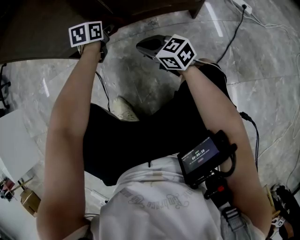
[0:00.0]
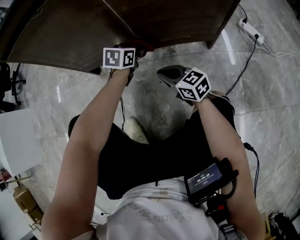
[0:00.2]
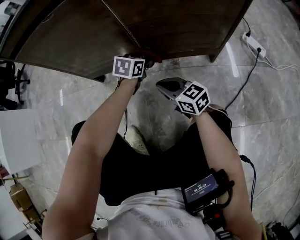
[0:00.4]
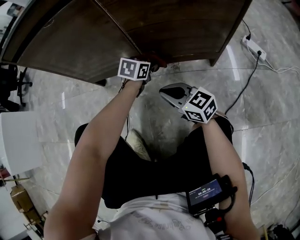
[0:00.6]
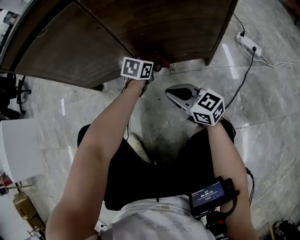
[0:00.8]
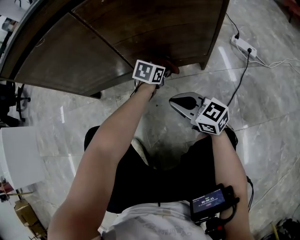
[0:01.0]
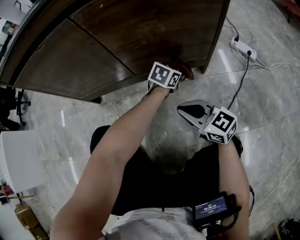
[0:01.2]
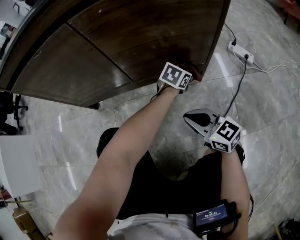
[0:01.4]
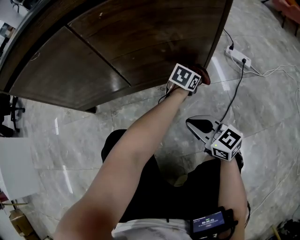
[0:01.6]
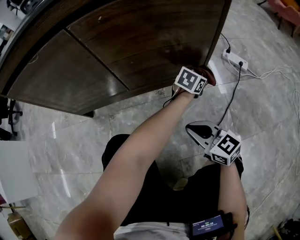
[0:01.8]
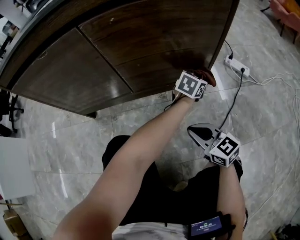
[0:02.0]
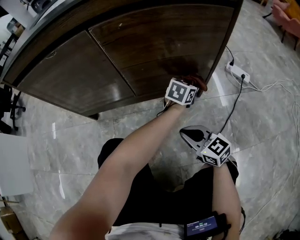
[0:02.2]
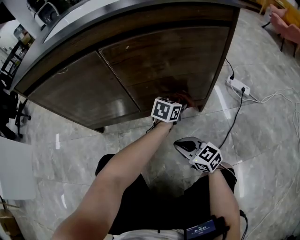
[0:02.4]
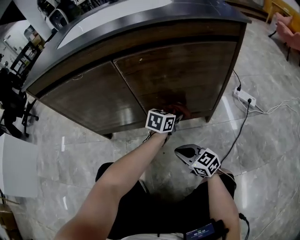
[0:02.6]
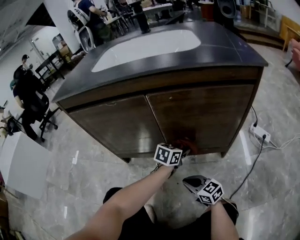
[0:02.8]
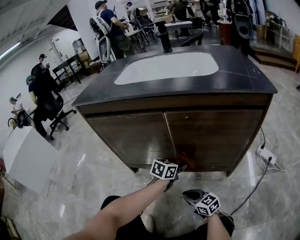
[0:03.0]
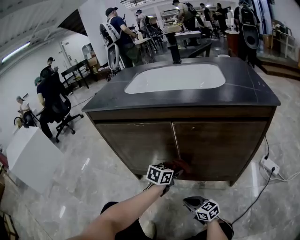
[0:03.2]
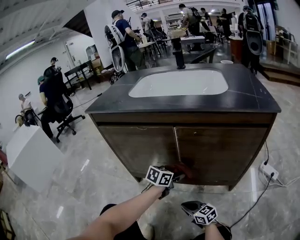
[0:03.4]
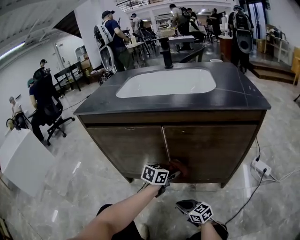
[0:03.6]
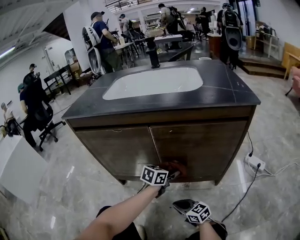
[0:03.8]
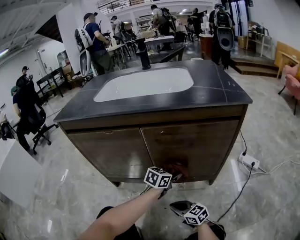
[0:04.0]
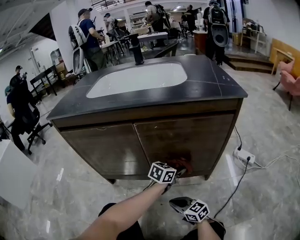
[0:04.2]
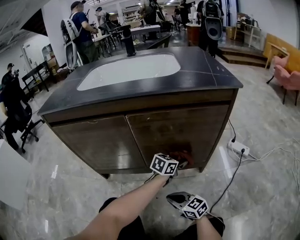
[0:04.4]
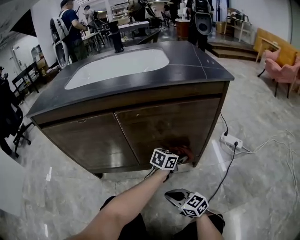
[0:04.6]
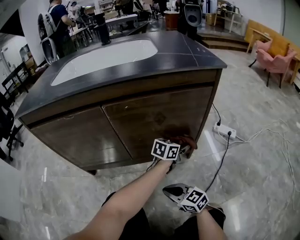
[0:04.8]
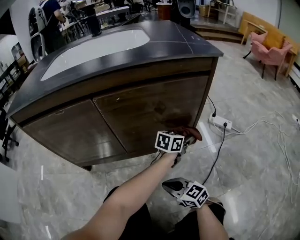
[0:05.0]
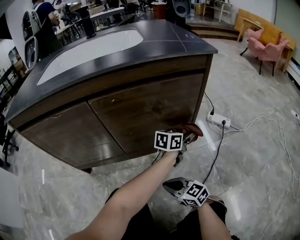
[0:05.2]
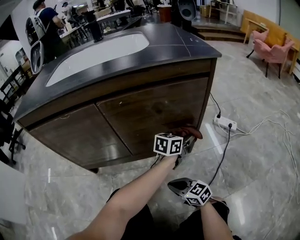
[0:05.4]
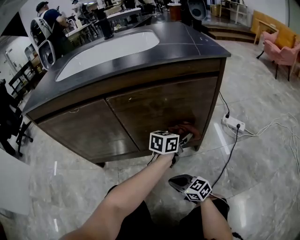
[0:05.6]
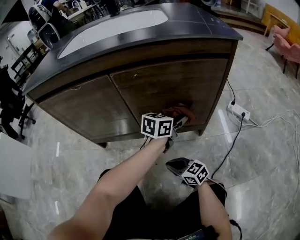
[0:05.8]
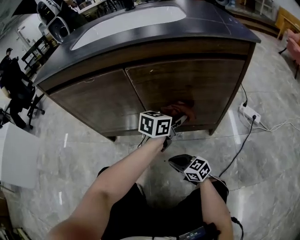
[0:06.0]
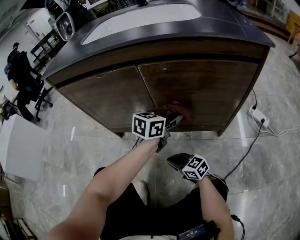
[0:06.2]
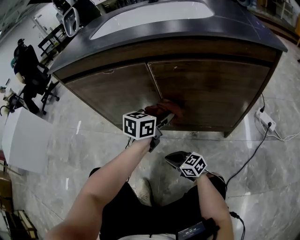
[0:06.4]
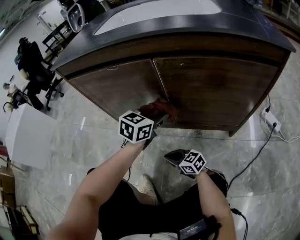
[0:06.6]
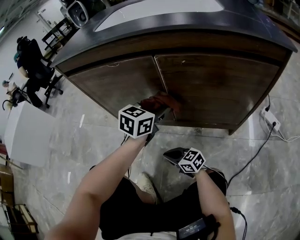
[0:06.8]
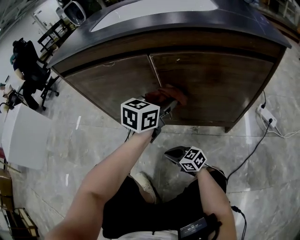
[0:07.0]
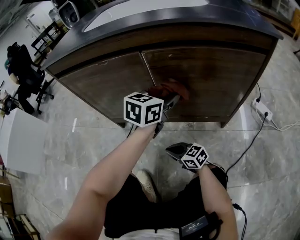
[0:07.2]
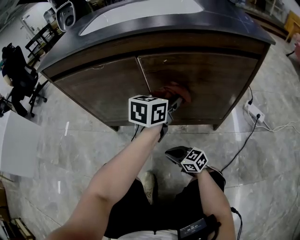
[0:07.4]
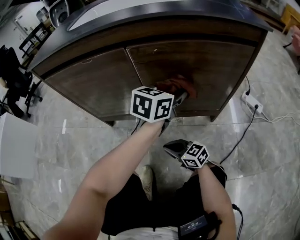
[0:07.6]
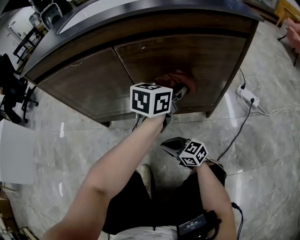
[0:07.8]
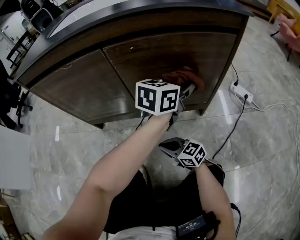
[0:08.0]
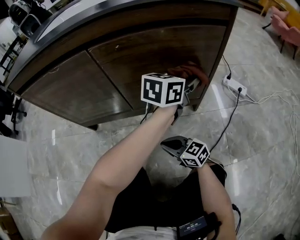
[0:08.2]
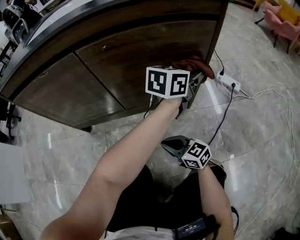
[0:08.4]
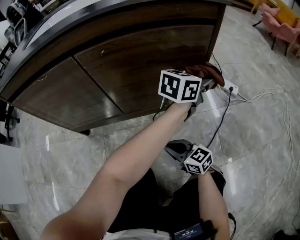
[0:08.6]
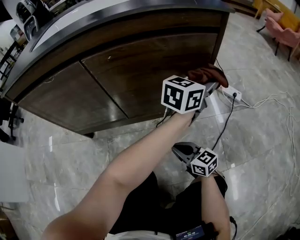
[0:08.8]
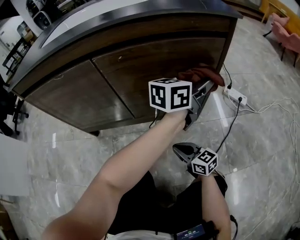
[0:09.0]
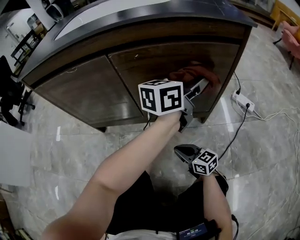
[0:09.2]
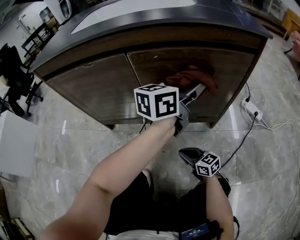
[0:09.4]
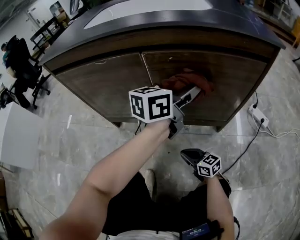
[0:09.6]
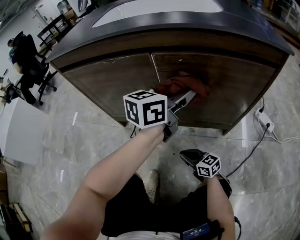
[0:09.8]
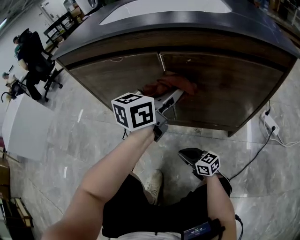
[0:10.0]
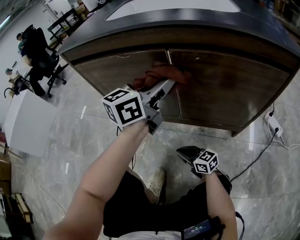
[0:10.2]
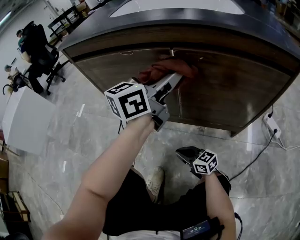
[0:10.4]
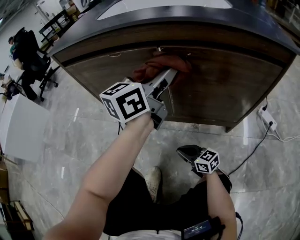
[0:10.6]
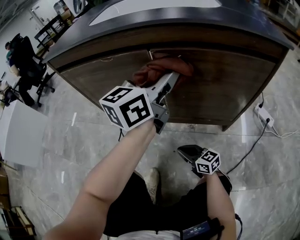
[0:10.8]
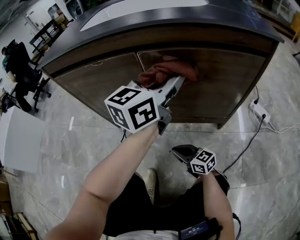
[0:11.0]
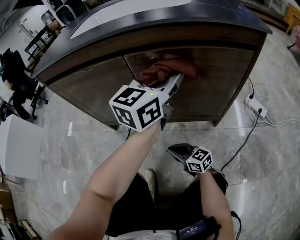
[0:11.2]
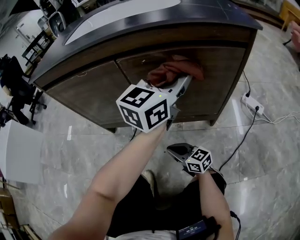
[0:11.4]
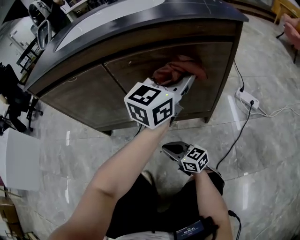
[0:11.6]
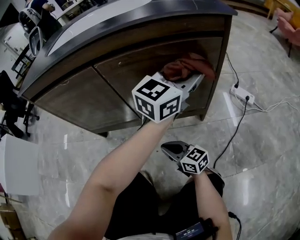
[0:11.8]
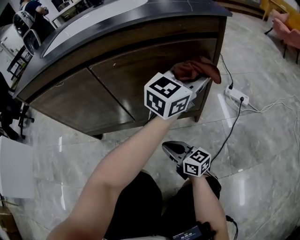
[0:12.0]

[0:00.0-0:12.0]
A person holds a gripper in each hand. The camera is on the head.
0:00.0 to 0:01.6: The right gripper shifts about 20 cm to the right, upward and backward. Meanwhile the left gripper travels to the right by approximately 35 cm, and swivels about 30 degrees.
0:01.6 to 0:03.0: The left gripper moves to the left, roughly 25 cm, and changes its angle by about 30 degrees, while the right gripper goes some 15 cm to the left and downward.
0:03.0 to 0:04.4: The left gripper moves to the right, roughly 15 cm. The right gripper shifts by some 5 cm.
0:04.4 to 0:06.0: The left gripper heads upward, covering approximately 5 cm, and travels to the right and back again, about 15 cm each way; the right gripper travels to the right and back again, approximately 5 cm each way.
0:06.0 to 0:07.6: The right gripper goes to the left and returns, about 10 cm each way. The left gripper shifts about 5 cm upward, and moves roughly 15 cm to the left and comes back.
0:07.6 to 0:09.0: Both grippers move to the right, about 15 cm. The right gripper rotates some 20 degrees. The left gripper rotates about 30 degrees.
0:09.0 to 0:10.4: The left gripper moves about 30 cm, and changes its angle by some 30 degrees, while the right gripper shifts by about 15 cm, and turns by roughly 30 degrees.
0:10.4 to 0:12.0: The right gripper ends up roughly 15 cm from where it was, and swivels roughly 30 degrees. Meanwhile the left gripper shifts by some 30 cm, and rotates some 40 degrees.

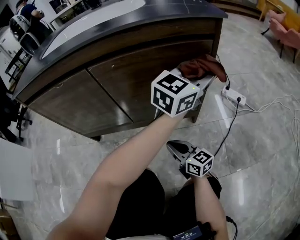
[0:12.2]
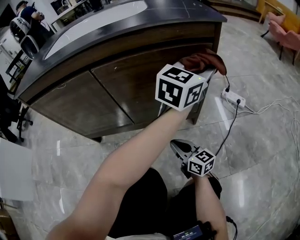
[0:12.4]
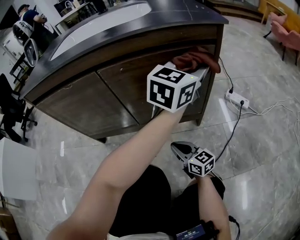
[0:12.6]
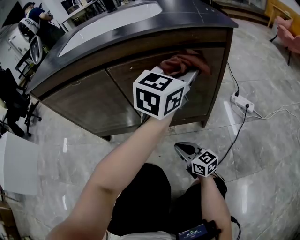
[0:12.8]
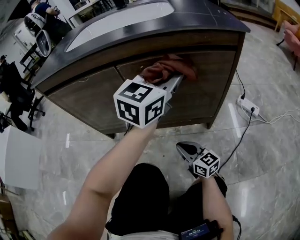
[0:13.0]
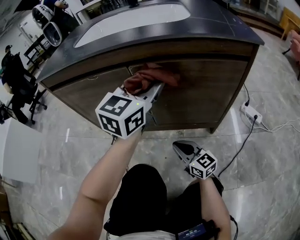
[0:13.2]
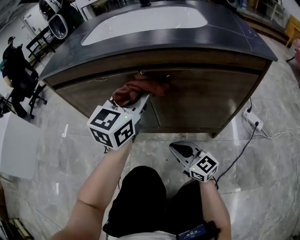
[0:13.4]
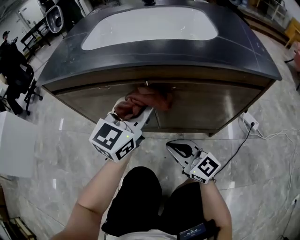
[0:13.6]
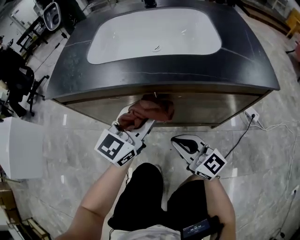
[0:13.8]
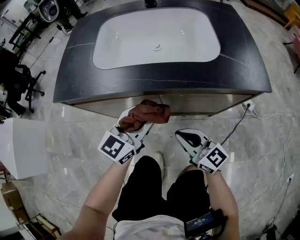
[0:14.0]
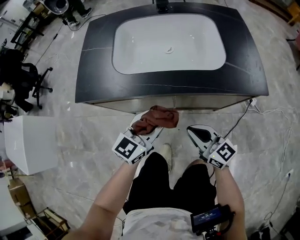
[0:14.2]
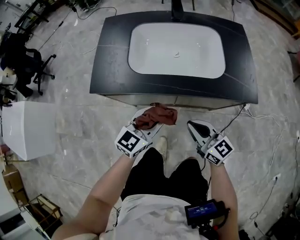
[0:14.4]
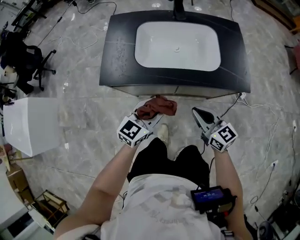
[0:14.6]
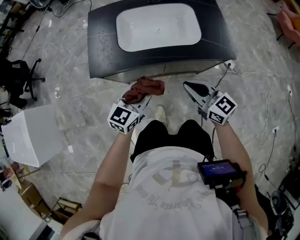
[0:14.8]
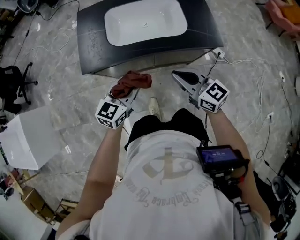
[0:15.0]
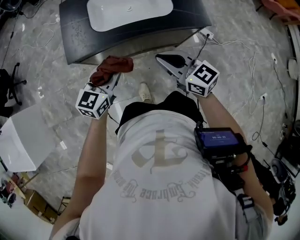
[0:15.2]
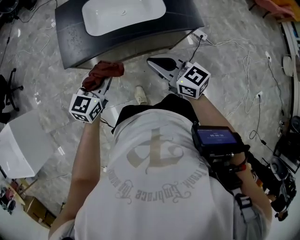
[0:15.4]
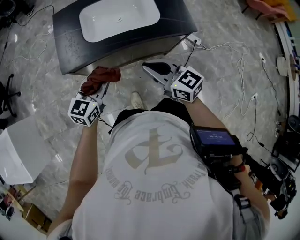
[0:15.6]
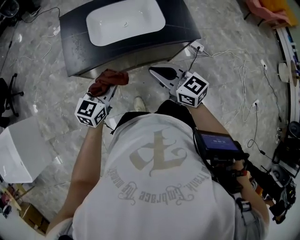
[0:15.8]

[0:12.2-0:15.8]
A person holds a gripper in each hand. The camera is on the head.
0:12.2 to 0:14.0: The right gripper heads upward and to the left, covering roughly 30 cm. The left gripper shifts some 40 cm to the left, and changes its angle by approximately 20 degrees.
0:14.0 to 0:15.8: The left gripper moves upward and to the left, roughly 25 cm. Meanwhile the right gripper heads upward, covering roughly 35 cm.

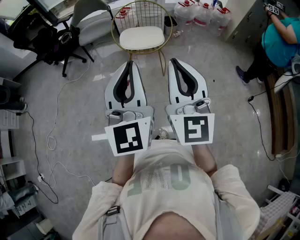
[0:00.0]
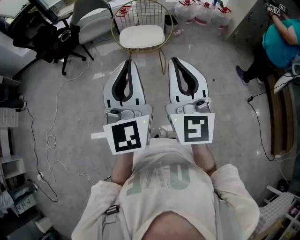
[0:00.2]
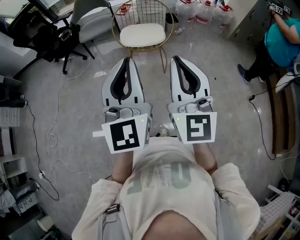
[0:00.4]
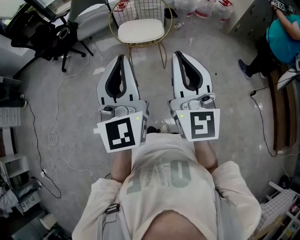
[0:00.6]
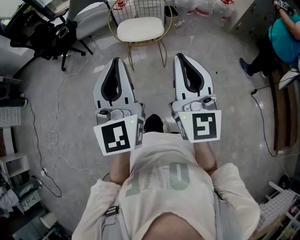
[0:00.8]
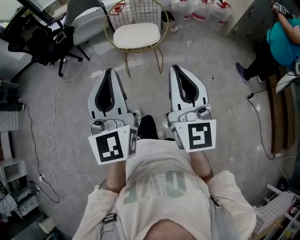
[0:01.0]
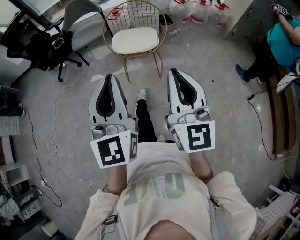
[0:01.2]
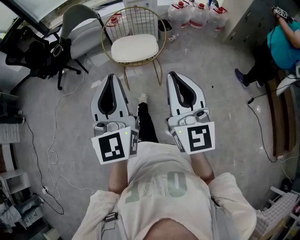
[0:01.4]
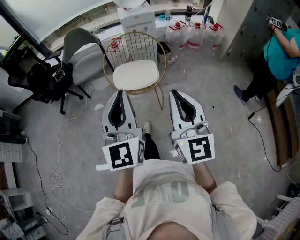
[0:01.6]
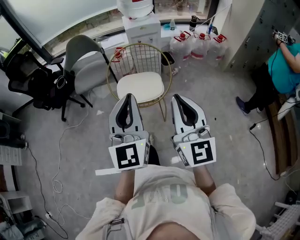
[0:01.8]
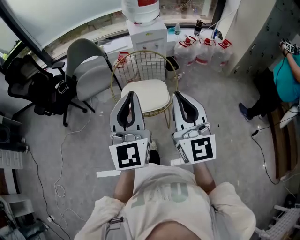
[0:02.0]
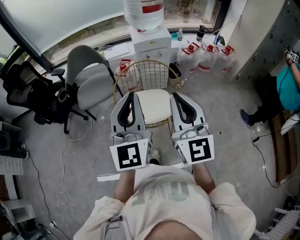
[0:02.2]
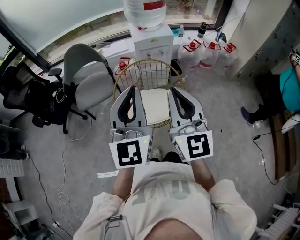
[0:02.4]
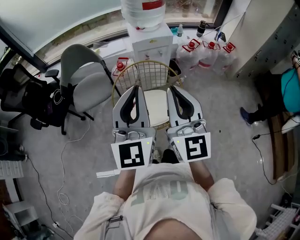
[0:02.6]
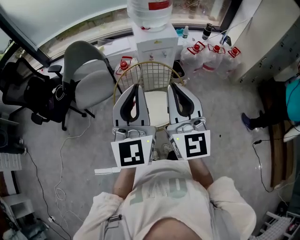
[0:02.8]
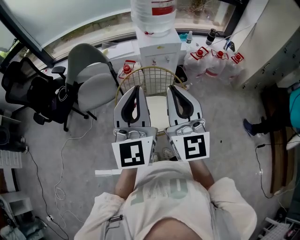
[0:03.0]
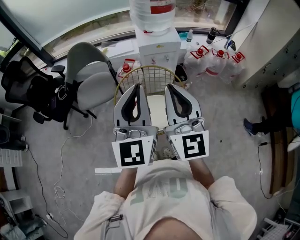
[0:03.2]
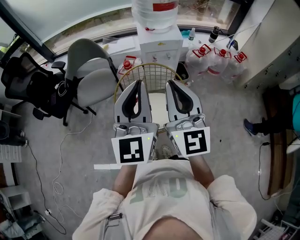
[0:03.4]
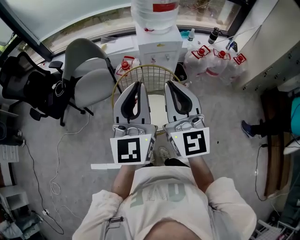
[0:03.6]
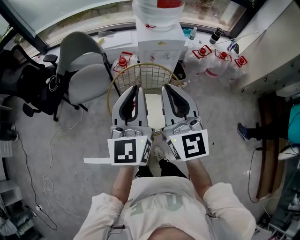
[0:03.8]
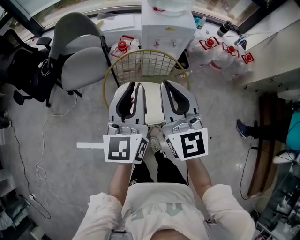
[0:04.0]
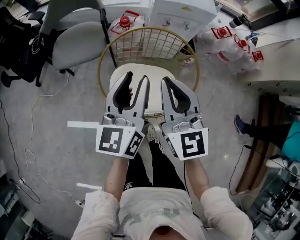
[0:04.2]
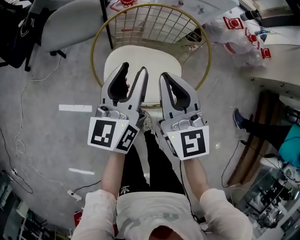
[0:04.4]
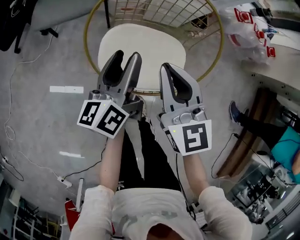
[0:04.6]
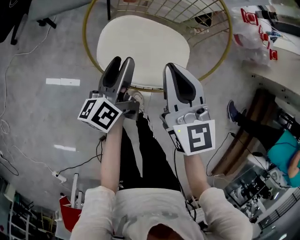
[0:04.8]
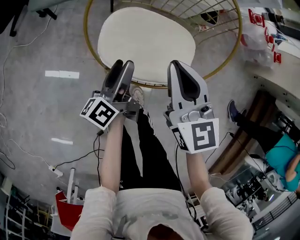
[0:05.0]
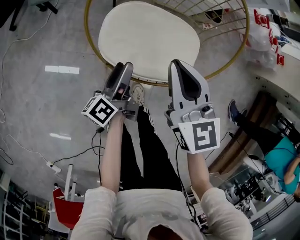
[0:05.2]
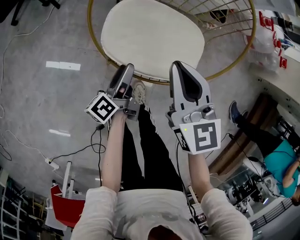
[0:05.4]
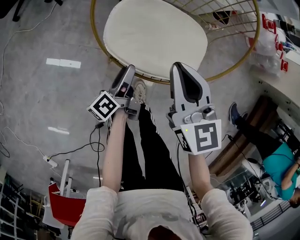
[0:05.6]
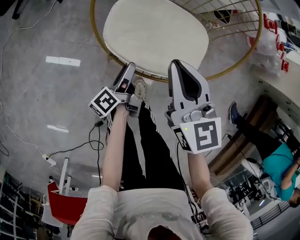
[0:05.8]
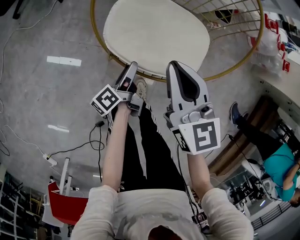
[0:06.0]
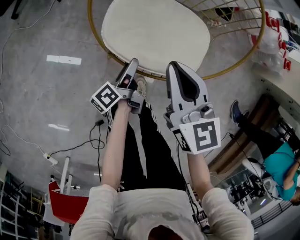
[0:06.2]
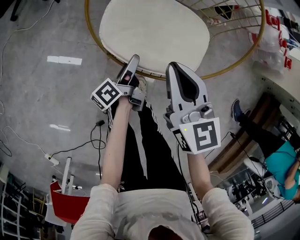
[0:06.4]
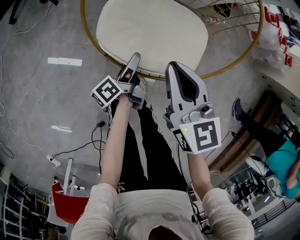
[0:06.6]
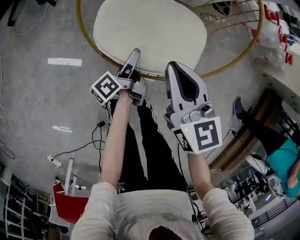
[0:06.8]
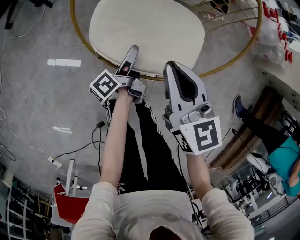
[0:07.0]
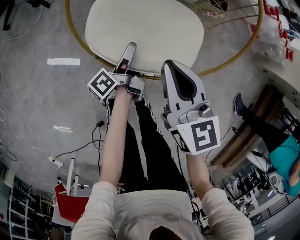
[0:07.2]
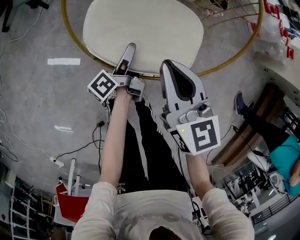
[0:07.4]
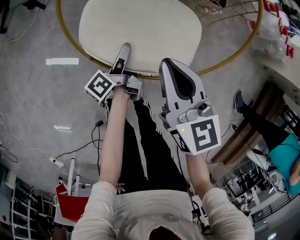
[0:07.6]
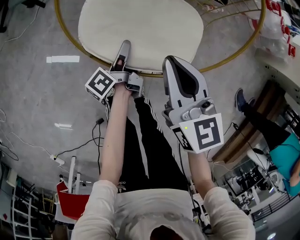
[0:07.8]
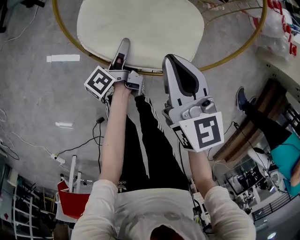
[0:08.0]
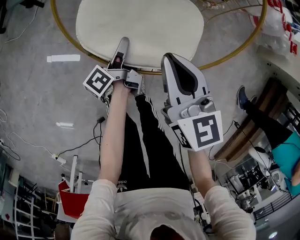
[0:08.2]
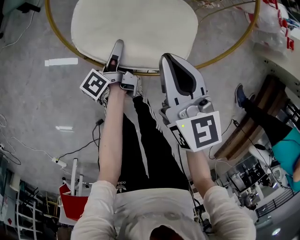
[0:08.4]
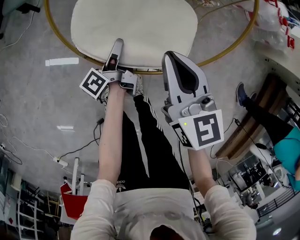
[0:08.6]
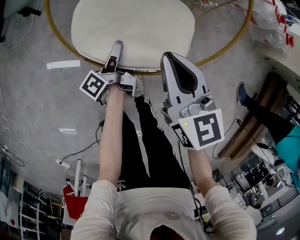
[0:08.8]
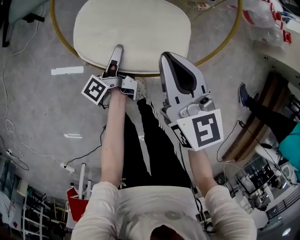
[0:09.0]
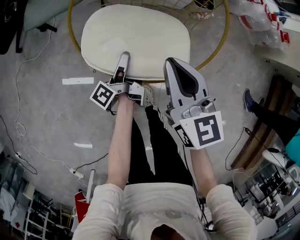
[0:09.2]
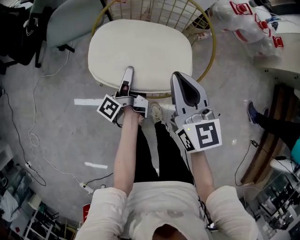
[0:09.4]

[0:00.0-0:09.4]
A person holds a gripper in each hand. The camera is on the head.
0:00.0 to 0:01.6: The two grippers go about 15 cm forward.
0:01.6 to 0:03.2: Both grippers move forward, roughly 35 cm.
0:03.2 to 0:04.8: The two grippers go about 40 cm downward. The left gripper twists approximately 60 degrees counterclockwise, seen from behind, and opens. The right gripper tips its fingers downward by some 30 degrees.
0:04.8 to 0:06.2: The left gripper travels downward and backward by roughly 20 cm, and changes its angle by roughly 30 degrees. The right gripper heads downward, covering about 10 cm.
0:06.2 to 0:07.8: The left gripper goes approximately 5 cm forward, and closes; the right gripper moves to the right, roughly 5 cm.
0:07.8 to 0:09.4: Both grippers move upward, approximately 15 cm.
